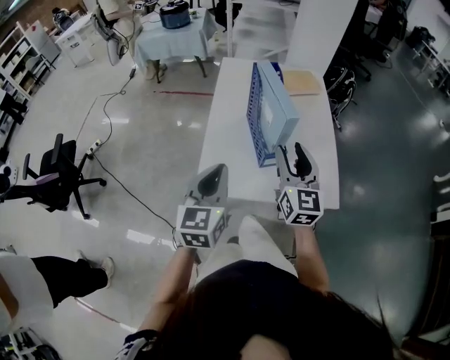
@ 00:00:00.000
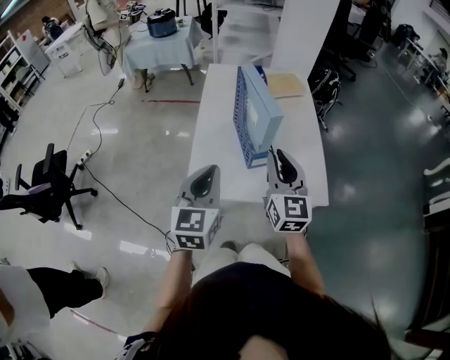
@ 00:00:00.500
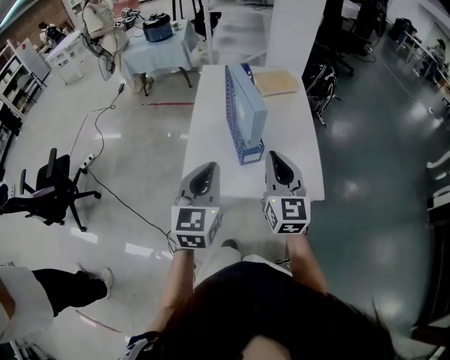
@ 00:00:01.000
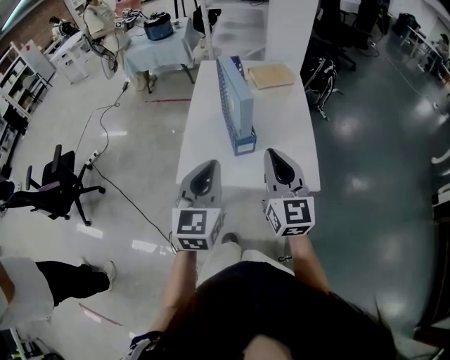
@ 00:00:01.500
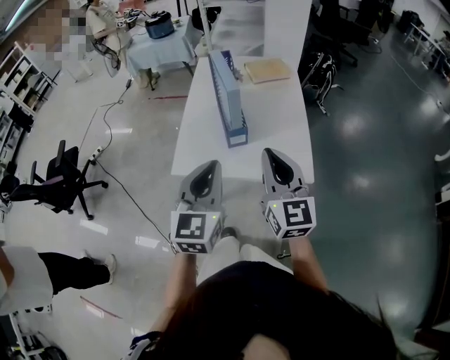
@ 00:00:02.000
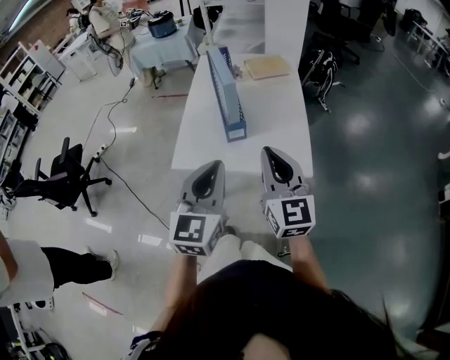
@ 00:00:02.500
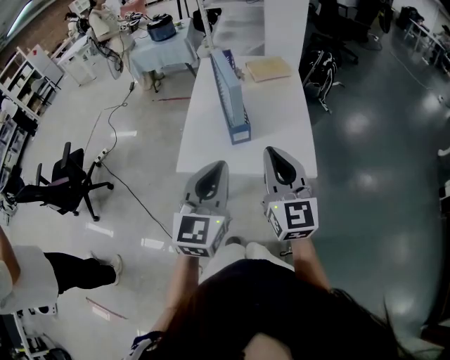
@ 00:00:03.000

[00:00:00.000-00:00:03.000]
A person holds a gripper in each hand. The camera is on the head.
00:00:00.000 to 00:00:01.500: The right gripper travels backward and to the right by approximately 10 cm, and closes. The left gripper shifts approximately 10 cm to the right and backward.
00:00:01.500 to 00:00:03.000: The right gripper heads backward, covering roughly 5 cm. Meanwhile the left gripper travels backward and to the right by some 10 cm.

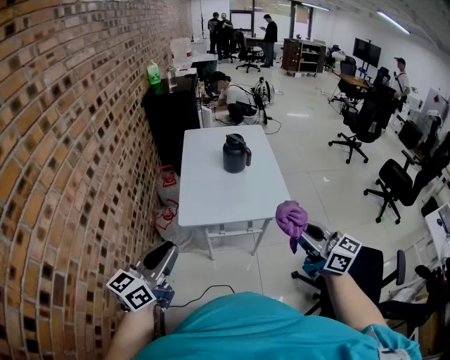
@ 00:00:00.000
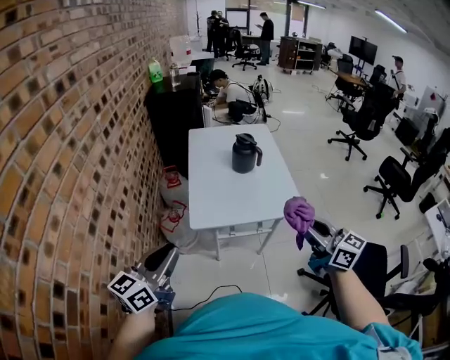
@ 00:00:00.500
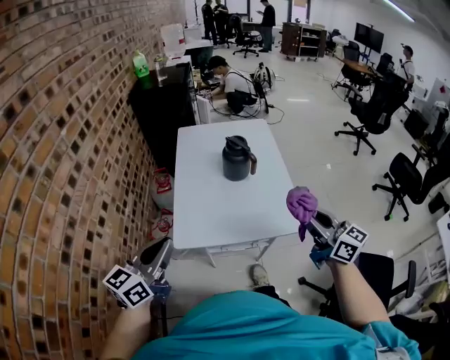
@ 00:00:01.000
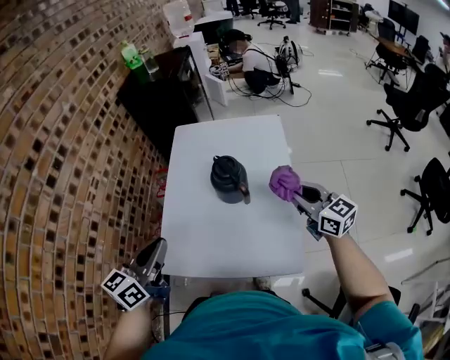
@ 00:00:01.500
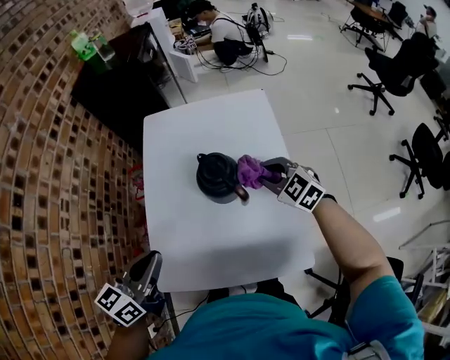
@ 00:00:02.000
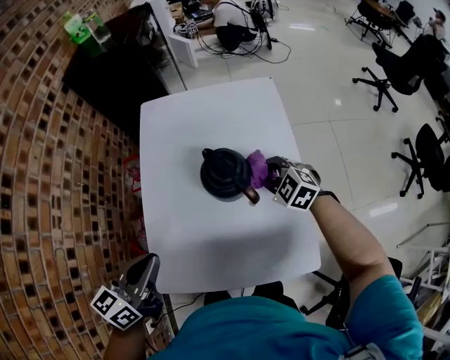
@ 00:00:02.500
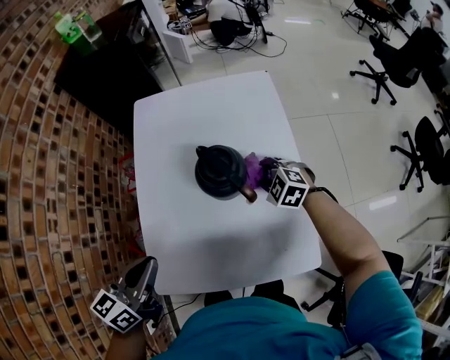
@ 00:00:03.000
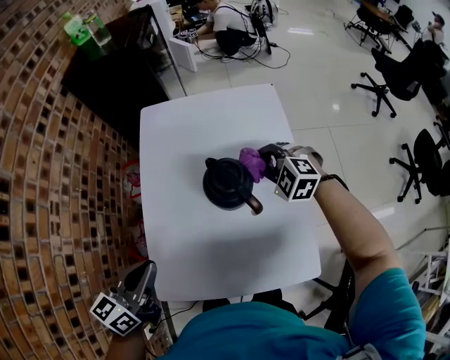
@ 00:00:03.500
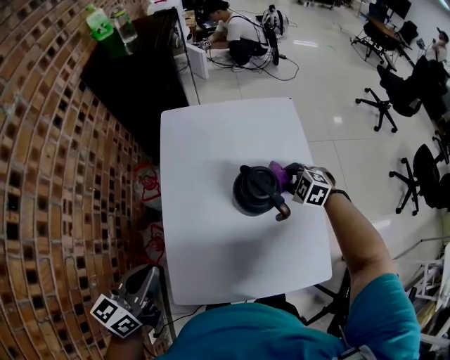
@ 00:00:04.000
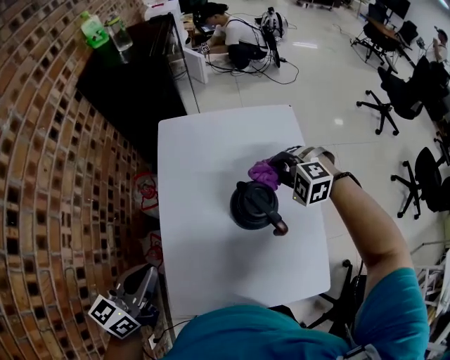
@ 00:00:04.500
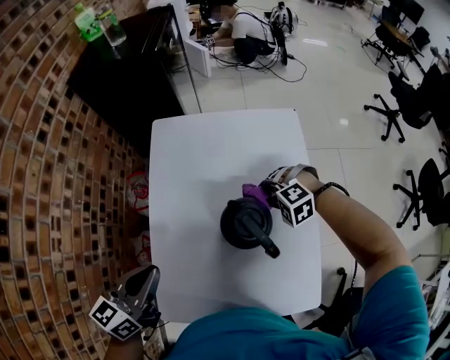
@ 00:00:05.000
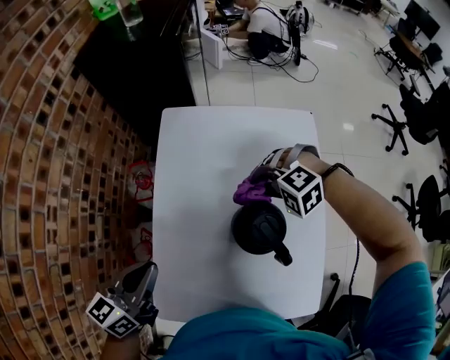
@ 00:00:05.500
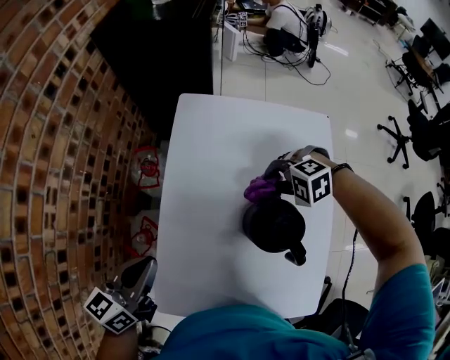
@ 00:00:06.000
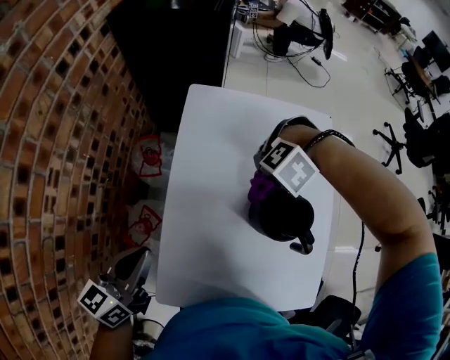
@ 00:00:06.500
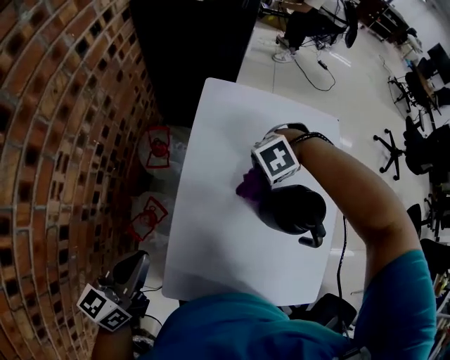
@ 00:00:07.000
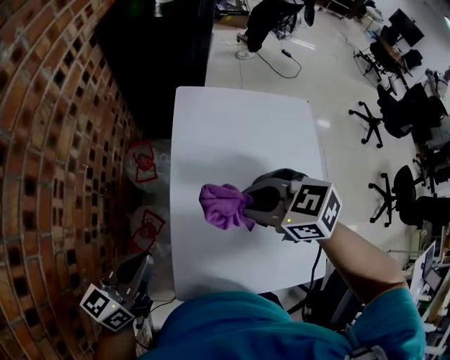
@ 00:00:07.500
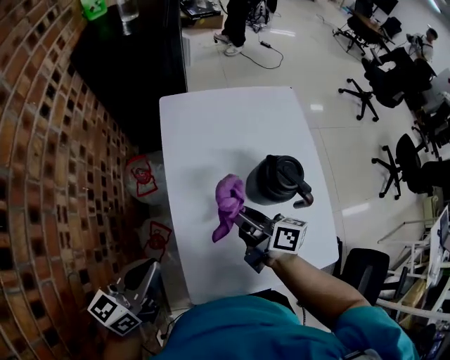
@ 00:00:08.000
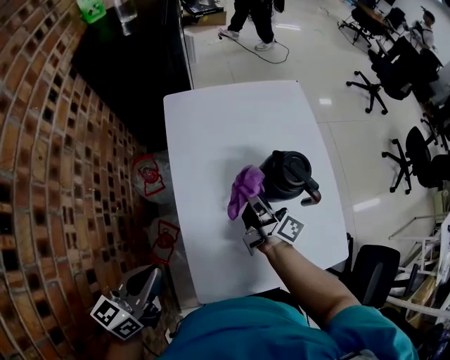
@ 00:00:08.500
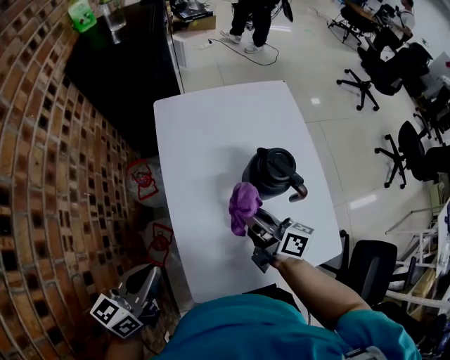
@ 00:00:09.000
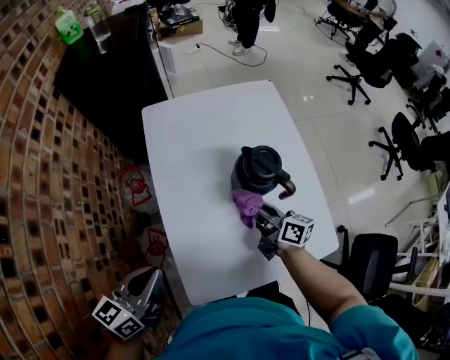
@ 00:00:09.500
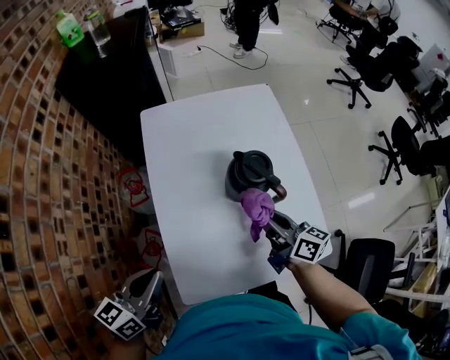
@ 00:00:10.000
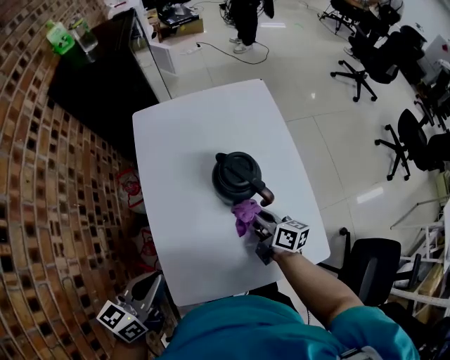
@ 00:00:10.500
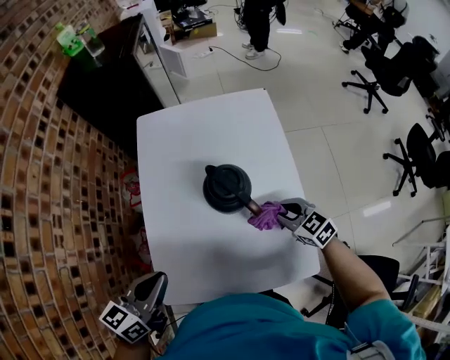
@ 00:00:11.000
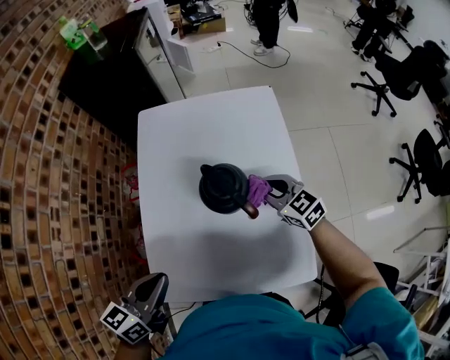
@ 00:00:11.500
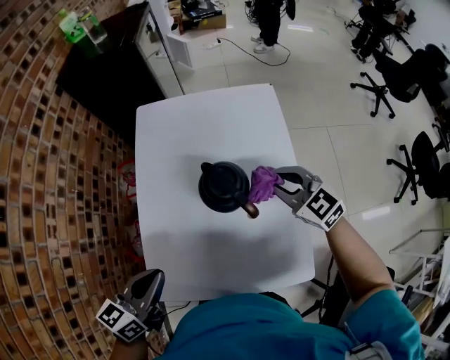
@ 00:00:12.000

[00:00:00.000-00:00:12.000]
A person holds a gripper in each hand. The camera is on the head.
00:00:00.000 to 00:00:02.000: The right gripper moves forward and downward, some 60 cm, and tilts its fingers approximately 40 degrees downward, while the left gripper goes some 40 cm forward.
00:00:02.000 to 00:00:04.000: The left gripper goes some 10 cm to the left. The right gripper swings up and down, about 10 cm each way, with 2 reversals, and swivels approximately 30 degrees.
00:00:04.000 to 00:00:06.000: The left gripper moves roughly 10 cm, while the right gripper swings up and down, approximately 10 cm each way, with 2 reversals, and rotates about 50 degrees.
00:00:06.000 to 00:00:08.000: The left gripper shifts by about 10 cm; the right gripper shifts by some 20 cm, and tips its fingers upward by approximately 60 degrees.
00:00:08.000 to 00:00:10.000: The right gripper is displaced to the right by some 15 cm; the left gripper shifts approximately 5 cm to the right.
00:00:10.000 to 00:00:12.000: The left gripper is displaced to the right by approximately 10 cm. The right gripper moves forward and to the right, approximately 15 cm, and rolls counterclockwise, seen from behind, by roughly 60 degrees.

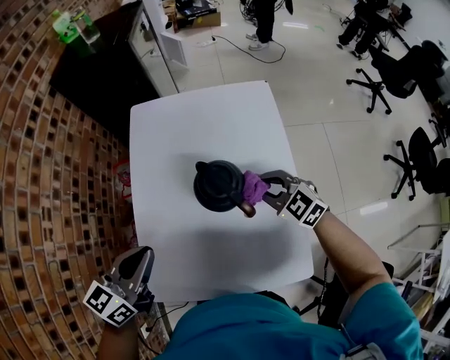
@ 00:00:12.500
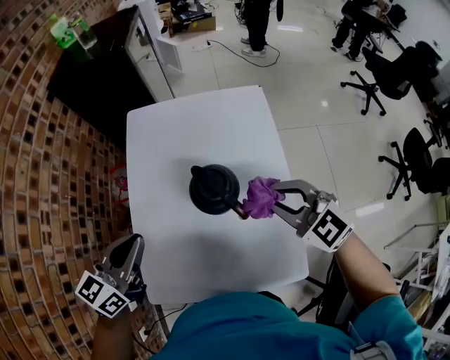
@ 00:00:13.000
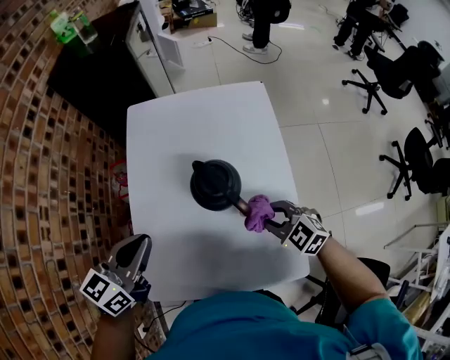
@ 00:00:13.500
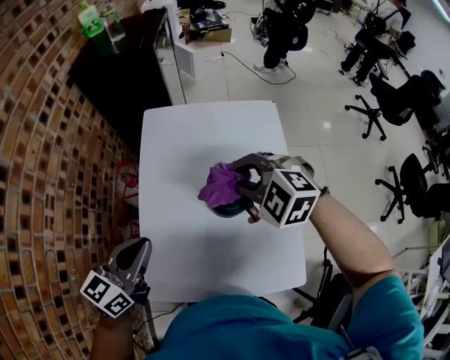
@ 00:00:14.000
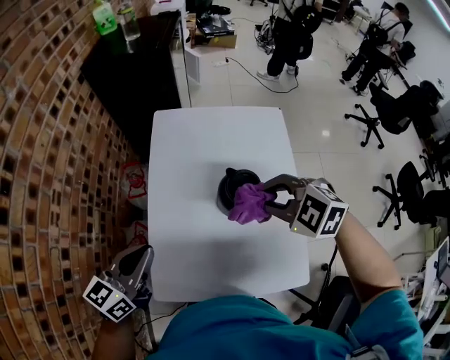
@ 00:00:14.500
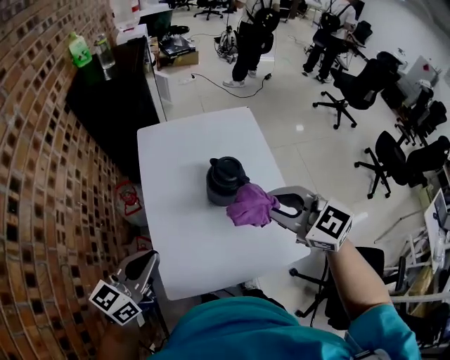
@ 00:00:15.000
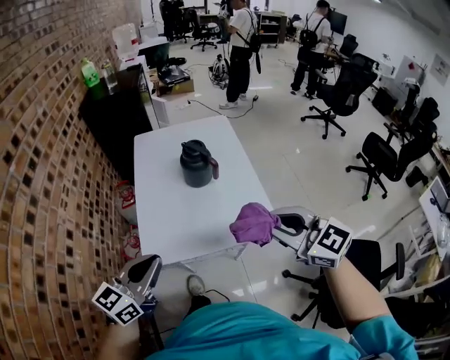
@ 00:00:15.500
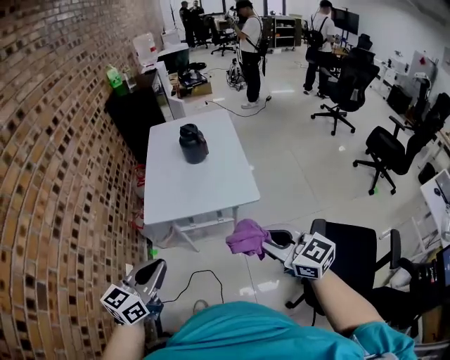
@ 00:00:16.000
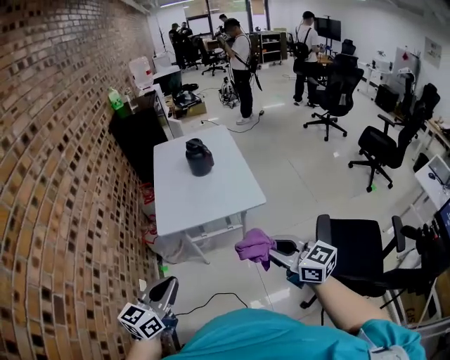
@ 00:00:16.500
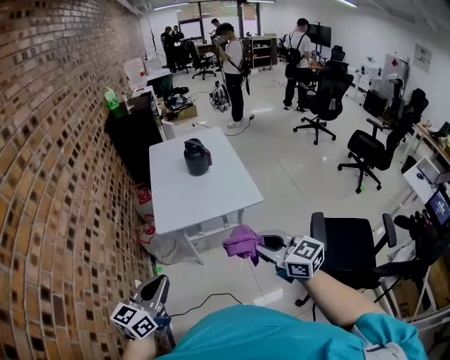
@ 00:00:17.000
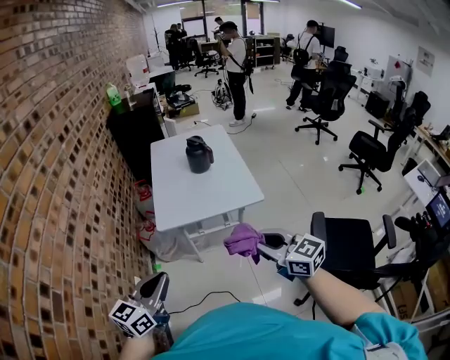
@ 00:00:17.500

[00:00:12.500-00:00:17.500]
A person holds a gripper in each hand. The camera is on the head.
00:00:12.500 to 00:00:15.000: The left gripper moves to the left and backward, roughly 10 cm, while the right gripper moves up and down over about 25 cm, changing direction 2 times.
00:00:15.000 to 00:00:17.500: The pair of grippers is taken backward, approximately 50 cm. The right gripper rotates approximately 20 degrees.

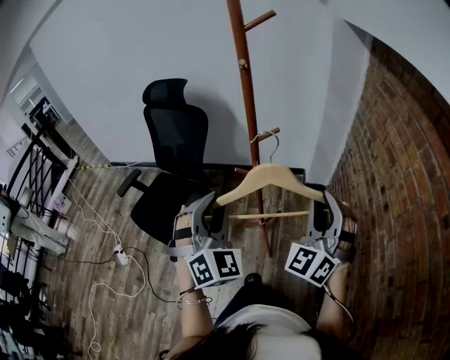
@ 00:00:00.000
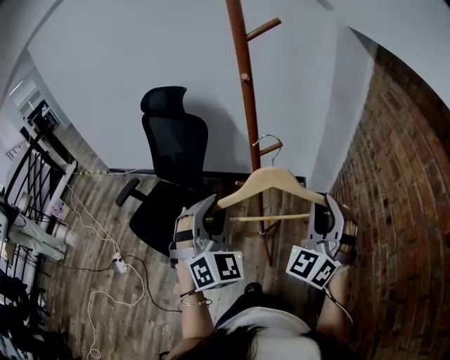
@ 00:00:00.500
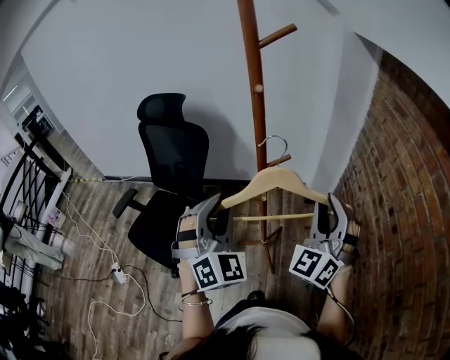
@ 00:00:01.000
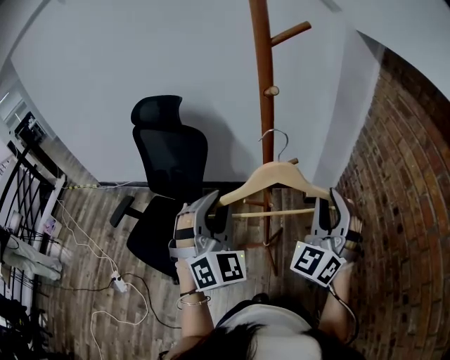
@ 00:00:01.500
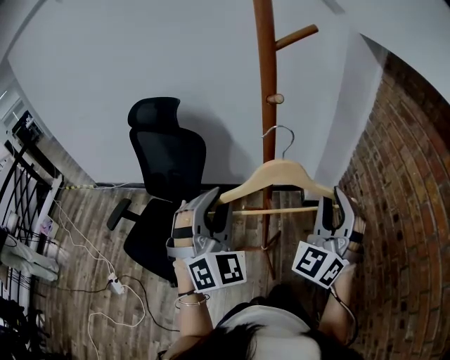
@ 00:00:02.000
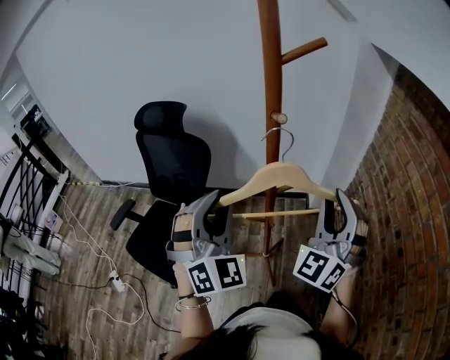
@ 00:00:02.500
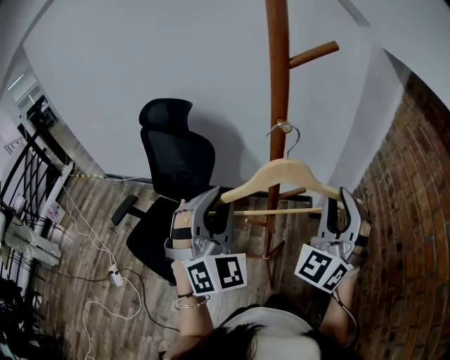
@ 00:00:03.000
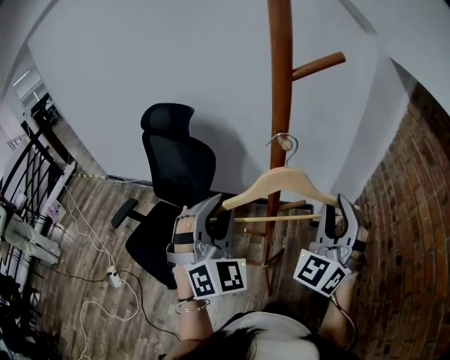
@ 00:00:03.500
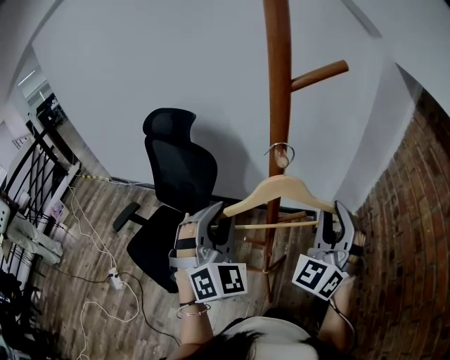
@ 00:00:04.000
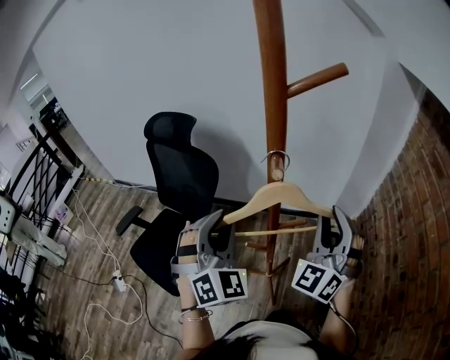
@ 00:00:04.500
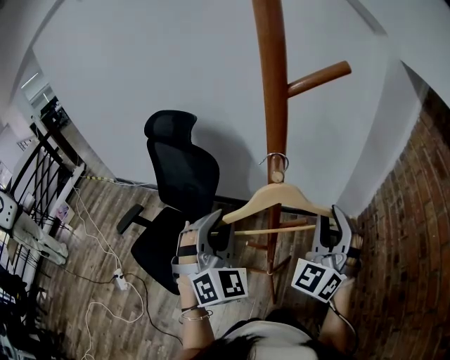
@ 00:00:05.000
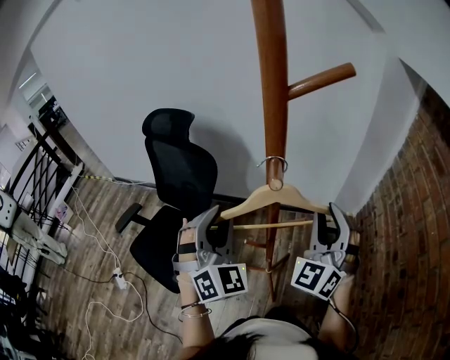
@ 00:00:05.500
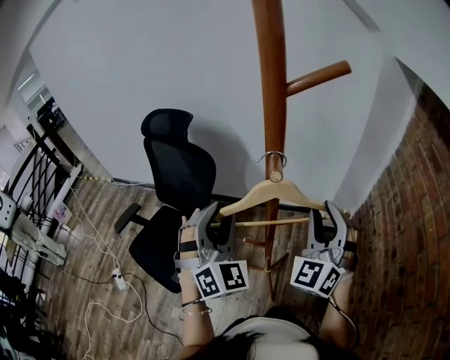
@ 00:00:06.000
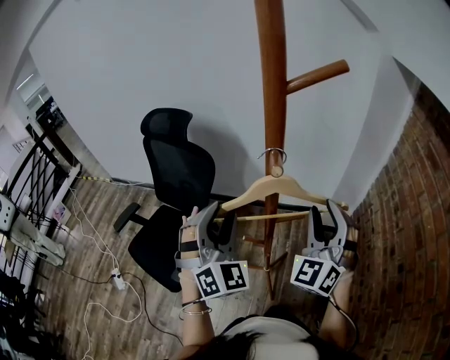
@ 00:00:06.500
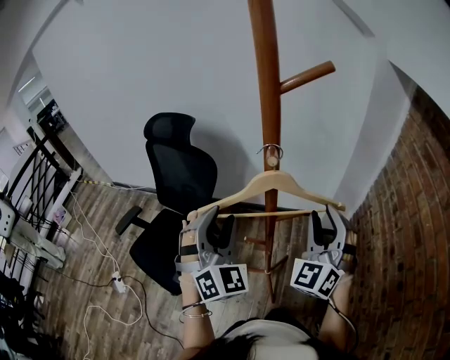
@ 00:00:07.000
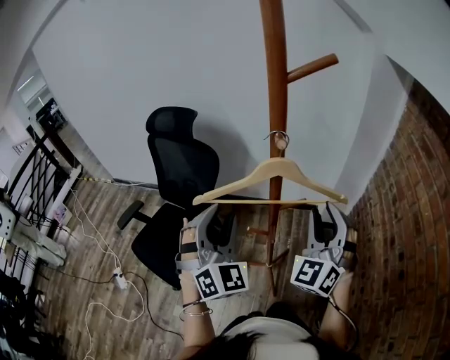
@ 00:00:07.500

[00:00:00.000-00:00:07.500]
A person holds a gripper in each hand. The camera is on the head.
00:00:00.000 to 00:00:02.000: Both grippers travel together forward and to the left, roughly 15 cm.
00:00:02.000 to 00:00:04.000: Both grippers travel together forward, roughly 10 cm.
00:00:04.000 to 00:00:05.500: The grippers move only a little.
00:00:05.500 to 00:00:07.500: Both grippers move backward, some 5 cm.
